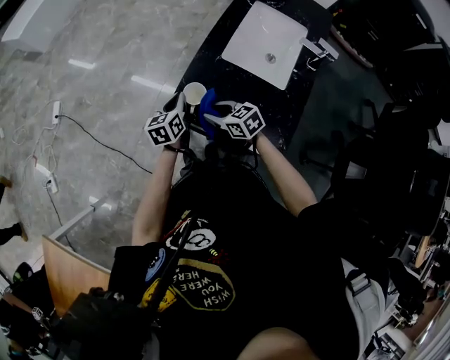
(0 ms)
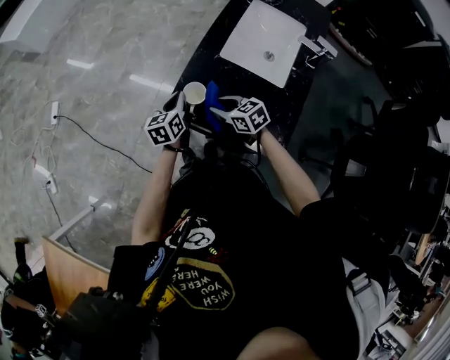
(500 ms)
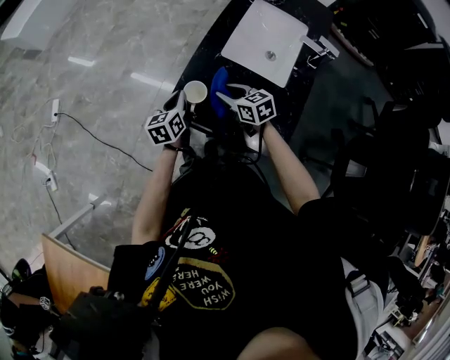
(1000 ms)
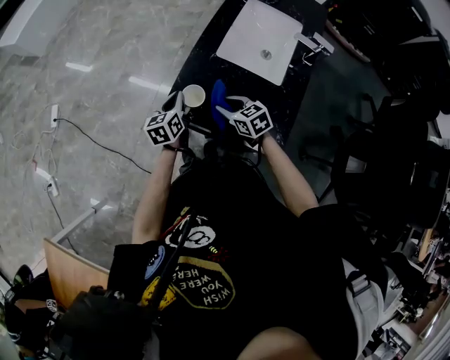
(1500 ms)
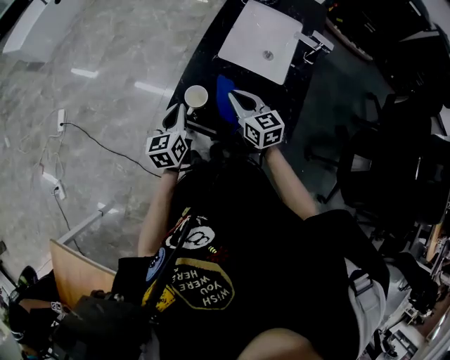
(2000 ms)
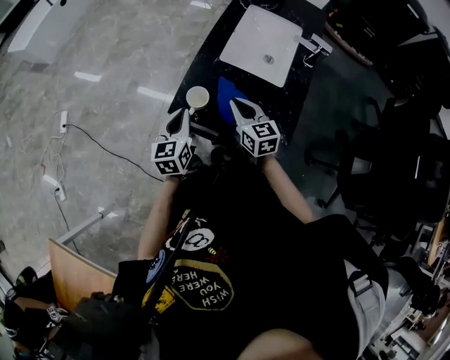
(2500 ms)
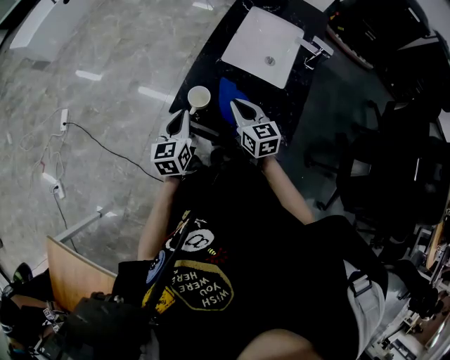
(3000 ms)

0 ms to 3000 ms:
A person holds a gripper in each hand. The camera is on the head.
0 ms to 1500 ms: The right gripper travels to the right by some 5 cm.
1500 ms to 3000 ms: The right gripper travels upward by approximately 10 cm, turns by some 30 degrees, and closes, while the left gripper is displaced backward and upward by approximately 10 cm.

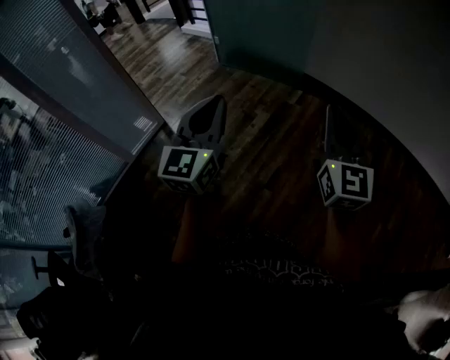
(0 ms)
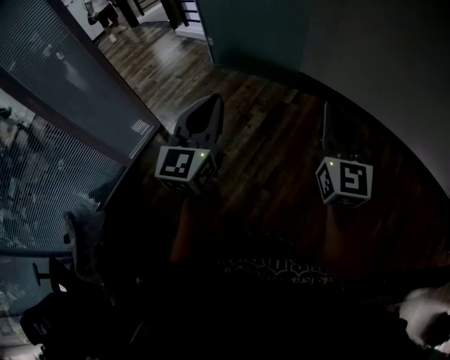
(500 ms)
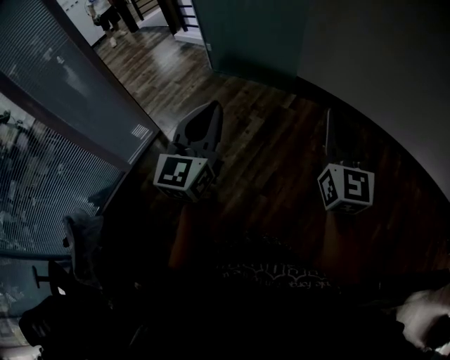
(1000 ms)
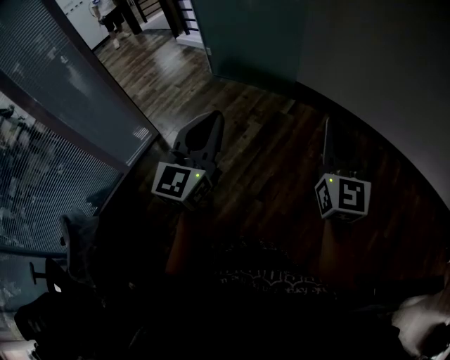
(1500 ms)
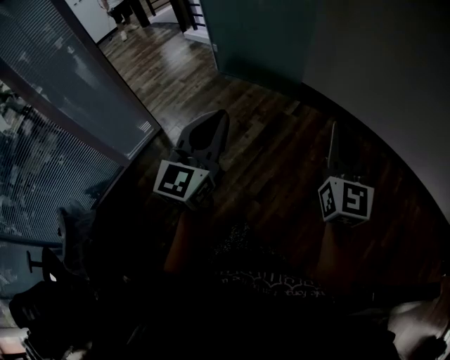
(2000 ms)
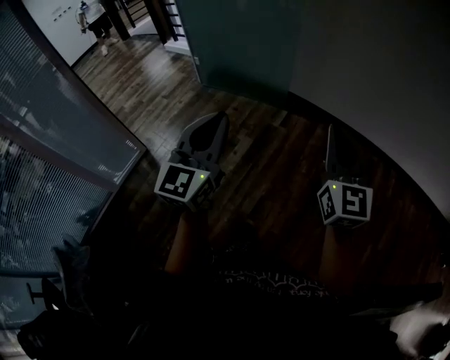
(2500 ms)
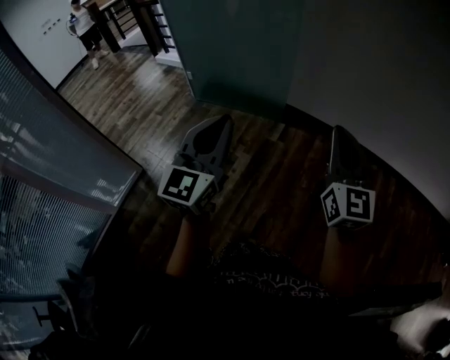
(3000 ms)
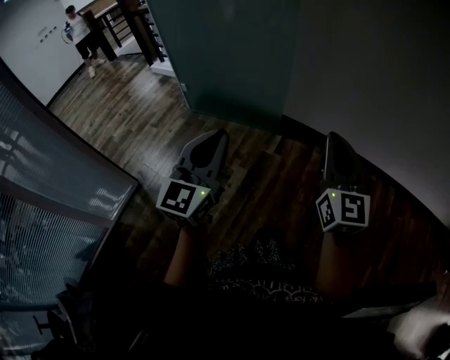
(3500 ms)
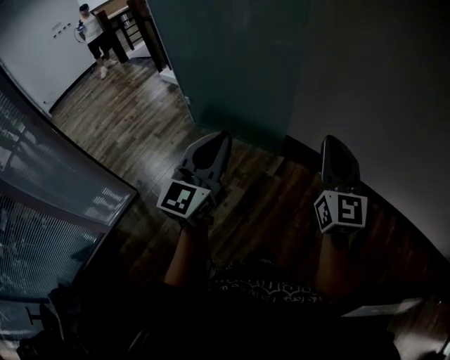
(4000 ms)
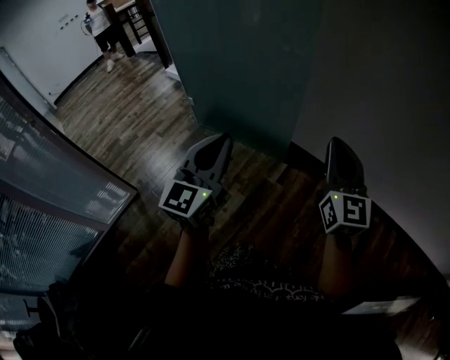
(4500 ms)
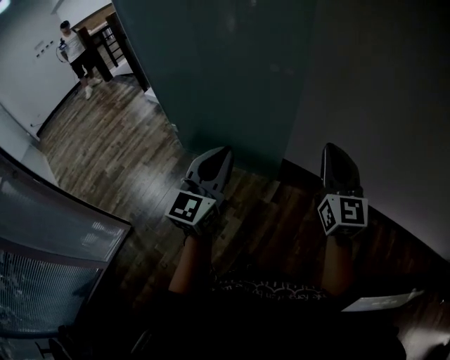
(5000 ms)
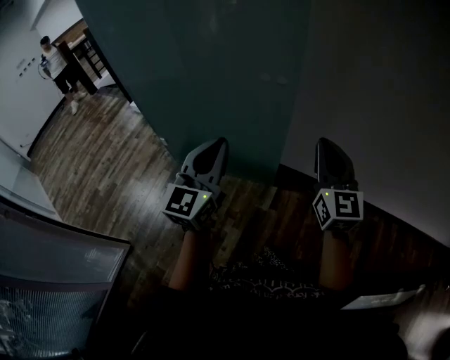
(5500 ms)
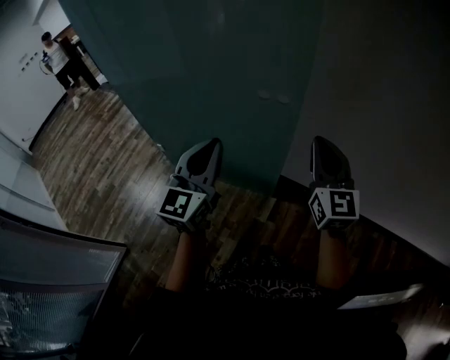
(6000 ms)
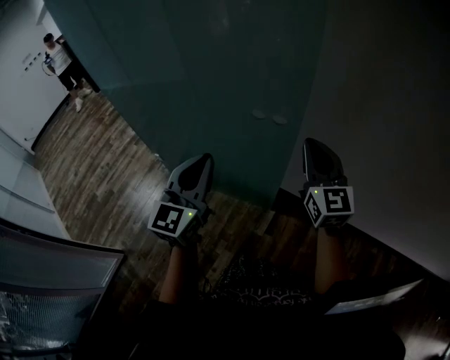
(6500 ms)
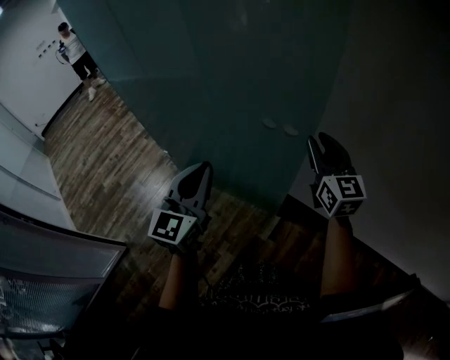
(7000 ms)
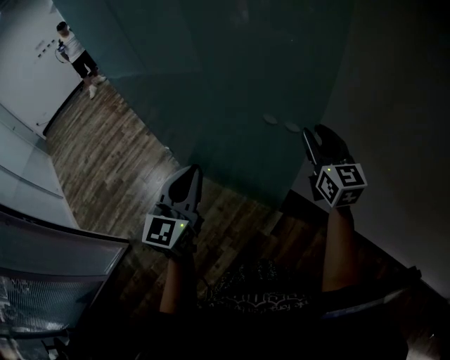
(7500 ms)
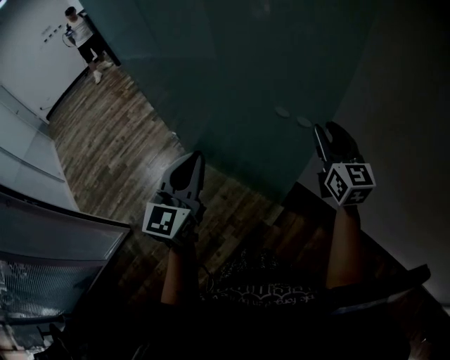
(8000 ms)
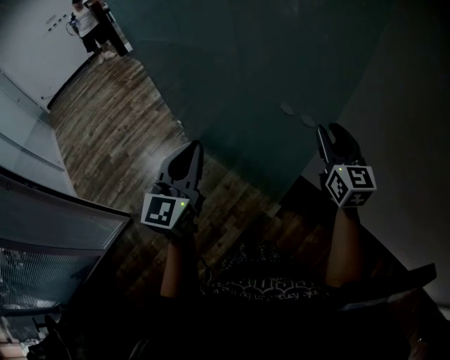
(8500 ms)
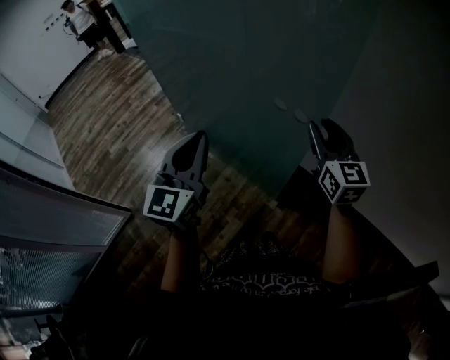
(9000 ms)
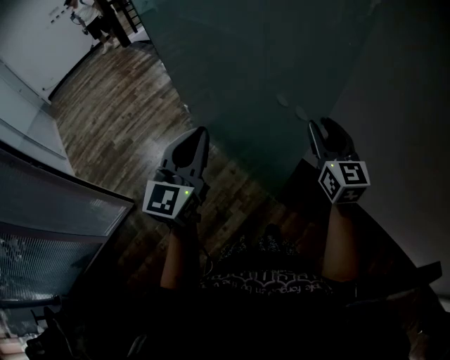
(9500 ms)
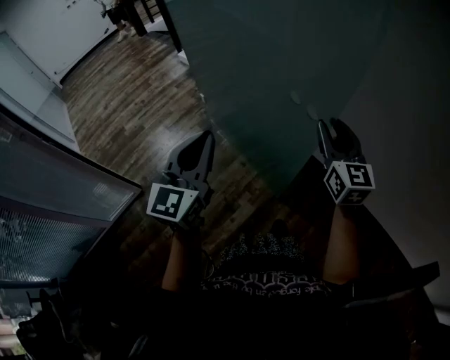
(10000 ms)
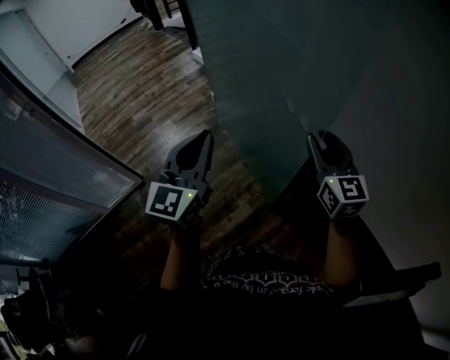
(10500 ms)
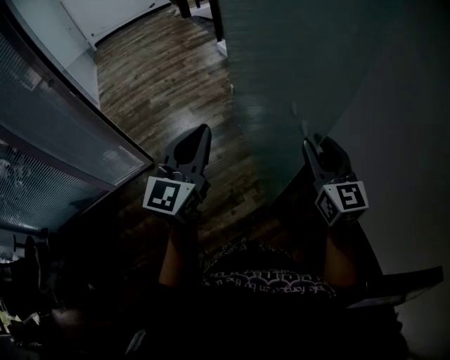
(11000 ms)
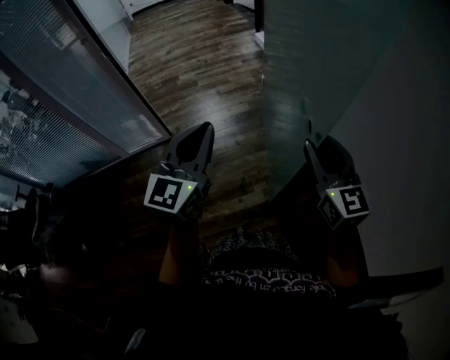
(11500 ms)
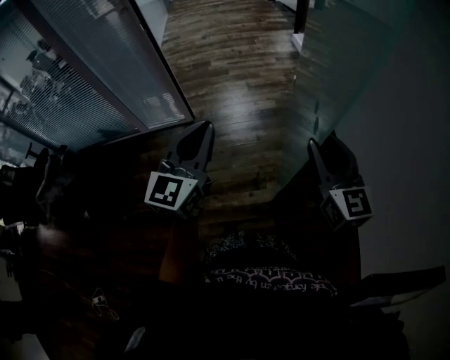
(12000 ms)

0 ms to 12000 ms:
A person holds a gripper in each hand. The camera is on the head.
0 ms to 2000 ms: The left gripper heads to the right, covering some 10 cm; the right gripper shifts some 10 cm to the right and forward.
2000 ms to 4000 ms: Both grippers are carried forward, approximately 40 cm.
4000 ms to 6000 ms: The pair of grippers is taken forward, roughly 40 cm.
6000 ms to 8000 ms: The left gripper moves to the left, approximately 5 cm, while the right gripper shifts about 15 cm forward, and opens up.
8000 ms to 10000 ms: Both grippers travel together backward and to the left, some 20 cm.
10000 ms to 12000 ms: The right gripper changes place by approximately 20 cm, and changes its angle by about 50 degrees; the left gripper changes place by approximately 20 cm, and turns by some 40 degrees.

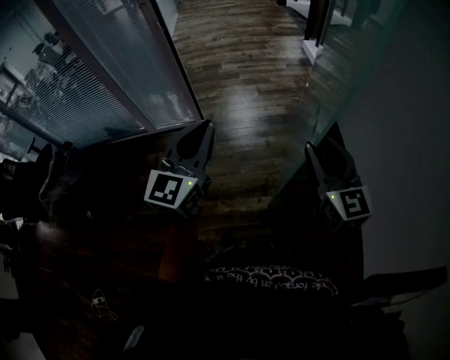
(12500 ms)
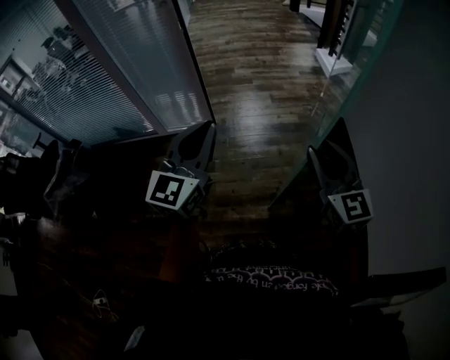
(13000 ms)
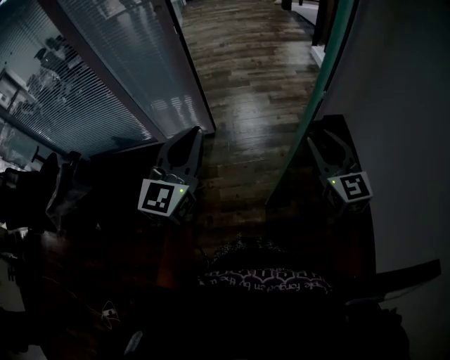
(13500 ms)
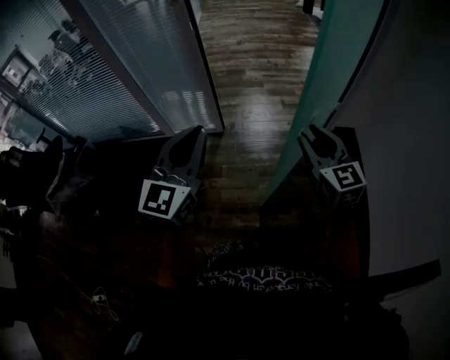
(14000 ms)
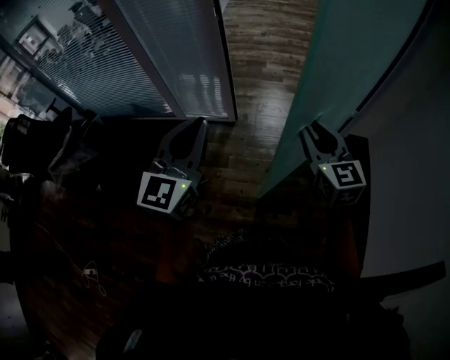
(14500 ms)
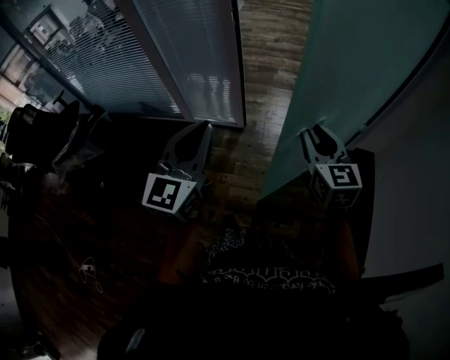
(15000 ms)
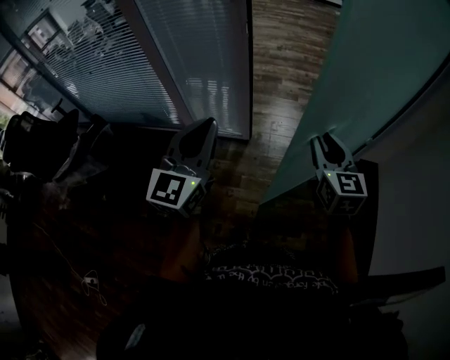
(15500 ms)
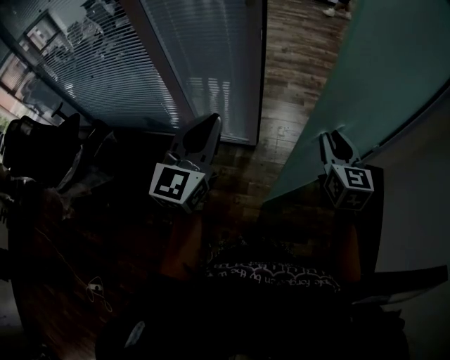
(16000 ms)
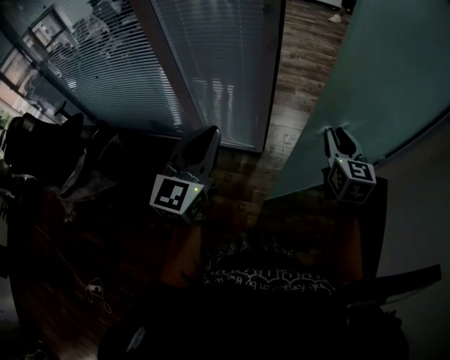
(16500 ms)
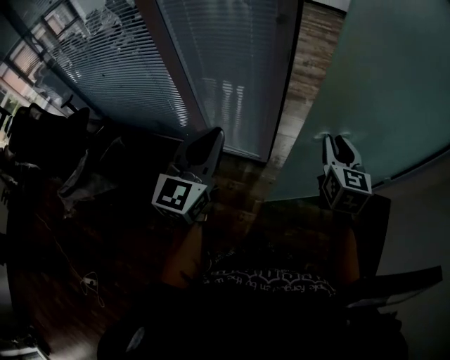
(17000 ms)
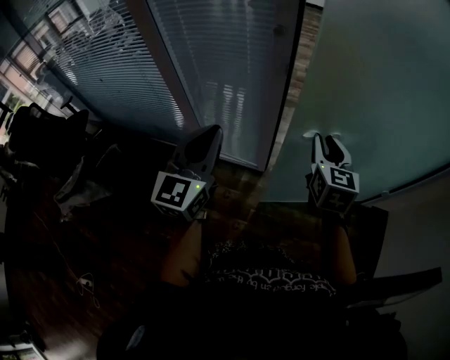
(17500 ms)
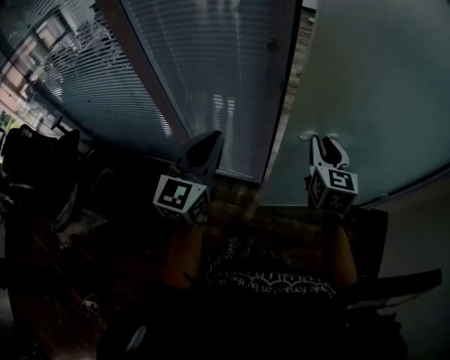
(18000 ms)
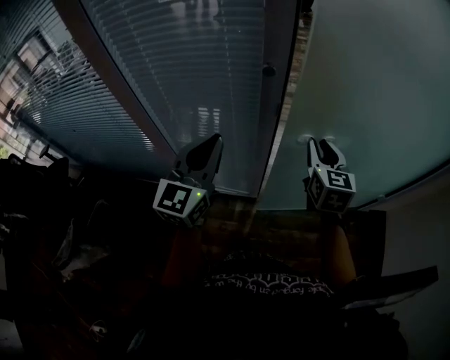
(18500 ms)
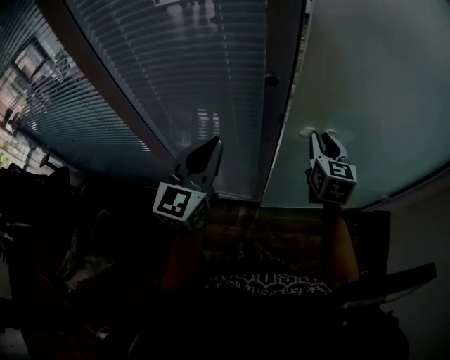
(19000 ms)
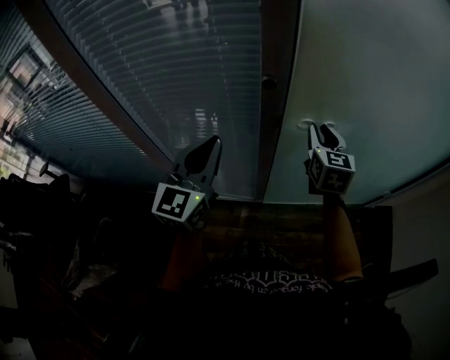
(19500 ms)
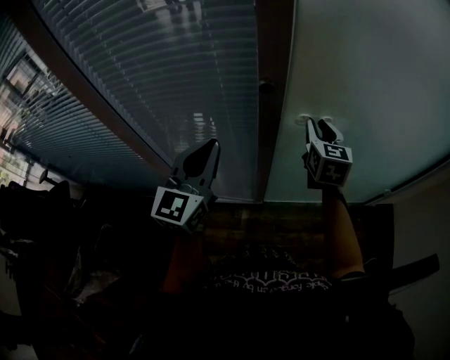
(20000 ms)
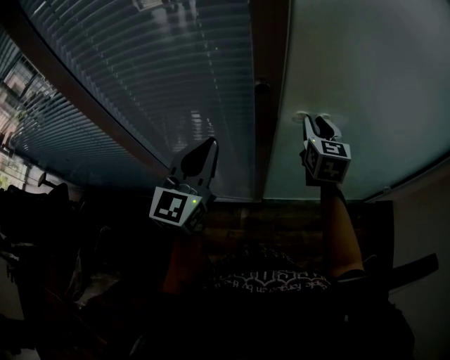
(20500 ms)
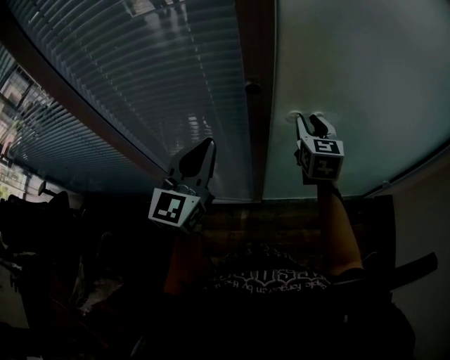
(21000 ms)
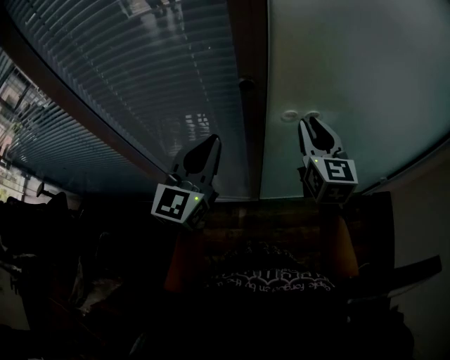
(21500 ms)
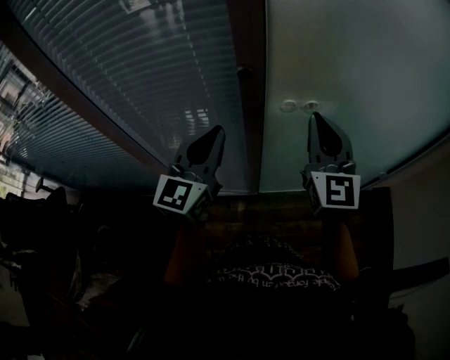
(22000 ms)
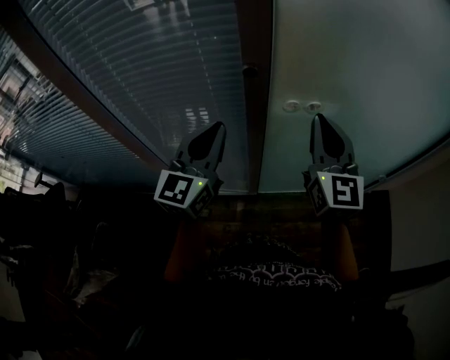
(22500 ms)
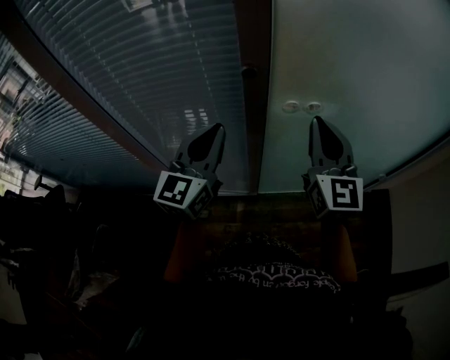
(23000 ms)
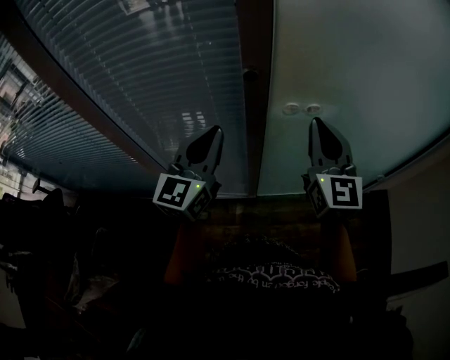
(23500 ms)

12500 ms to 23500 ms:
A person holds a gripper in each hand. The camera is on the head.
12500 ms to 14500 ms: The left gripper shifts approximately 15 cm to the left and forward. Meanwhile the right gripper goes roughly 25 cm forward and to the left.
14500 ms to 16000 ms: Both grippers travel together forward and to the left, approximately 20 cm.
16000 ms to 18000 ms: The grippers both shift forward by approximately 20 cm.
18000 ms to 20000 ms: The grippers both shift forward by some 15 cm.
20000 ms to 21500 ms: The right gripper moves backward and upward, approximately 10 cm.
21500 ms to 23500 ms: The right gripper heads backward, covering about 5 cm, and closes.

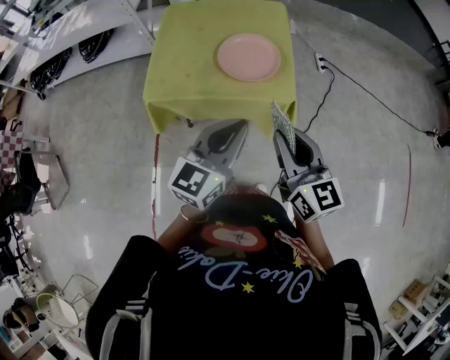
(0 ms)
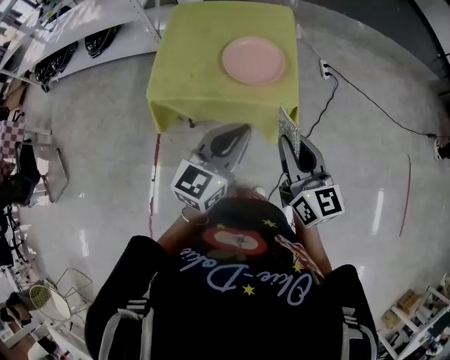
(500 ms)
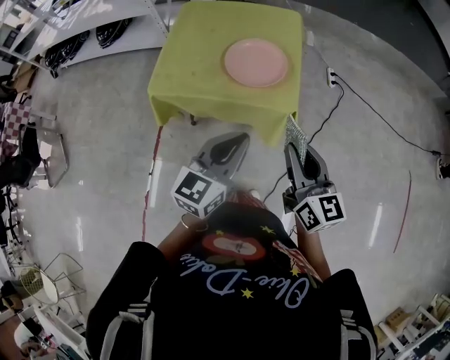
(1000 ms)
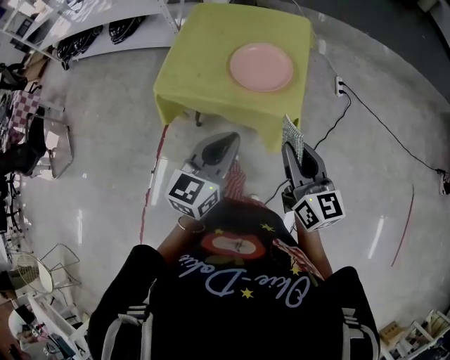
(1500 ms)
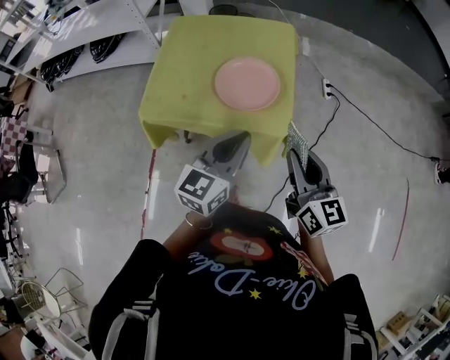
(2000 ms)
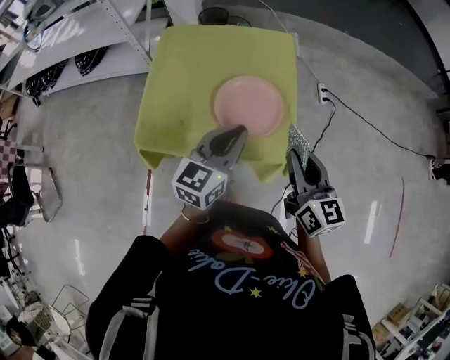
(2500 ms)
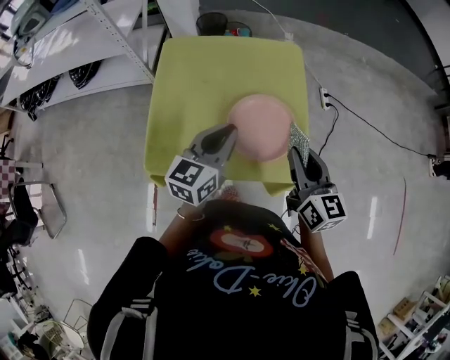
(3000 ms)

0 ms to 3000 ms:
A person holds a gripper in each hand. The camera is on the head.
0 ms to 1500 ms: The right gripper travels to the right by about 5 cm.
1500 ms to 3000 ms: Both grippers travel together forward, roughly 30 cm.
